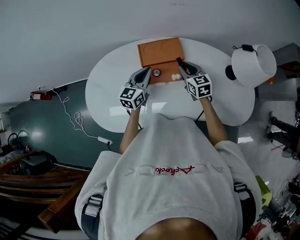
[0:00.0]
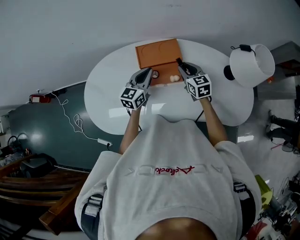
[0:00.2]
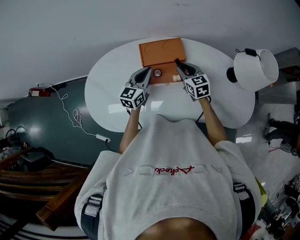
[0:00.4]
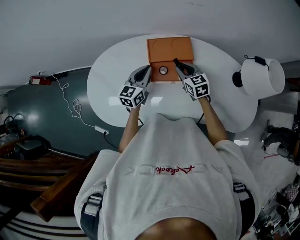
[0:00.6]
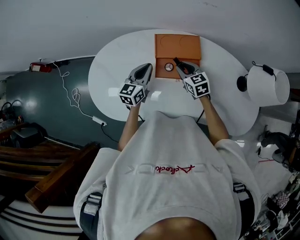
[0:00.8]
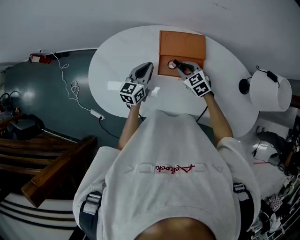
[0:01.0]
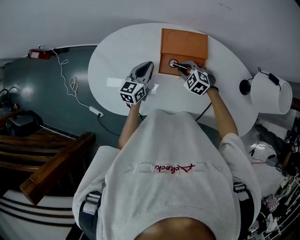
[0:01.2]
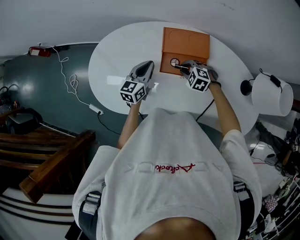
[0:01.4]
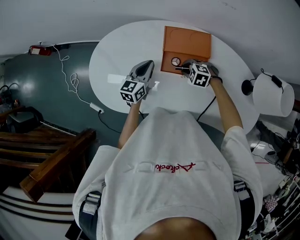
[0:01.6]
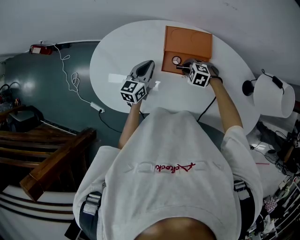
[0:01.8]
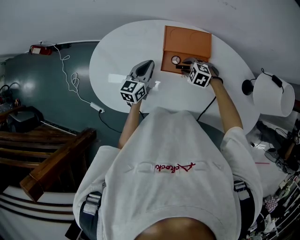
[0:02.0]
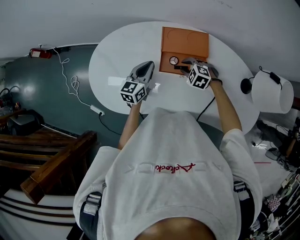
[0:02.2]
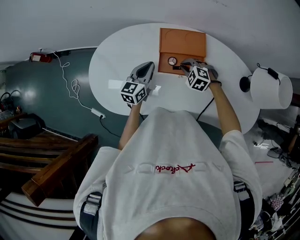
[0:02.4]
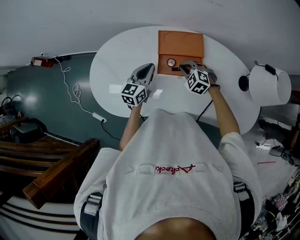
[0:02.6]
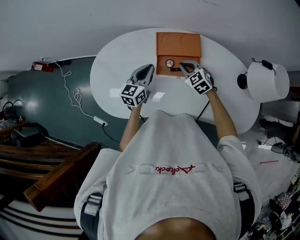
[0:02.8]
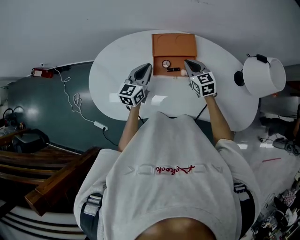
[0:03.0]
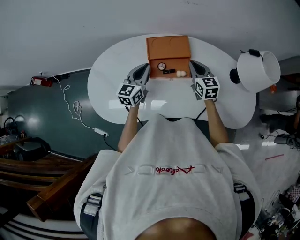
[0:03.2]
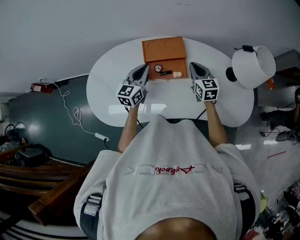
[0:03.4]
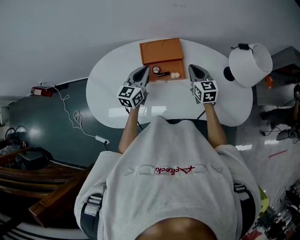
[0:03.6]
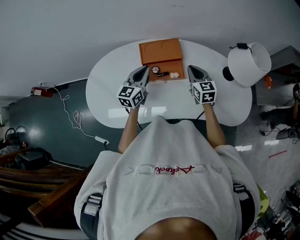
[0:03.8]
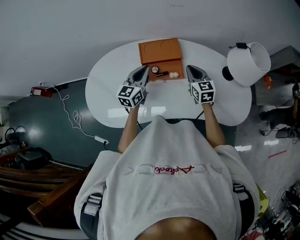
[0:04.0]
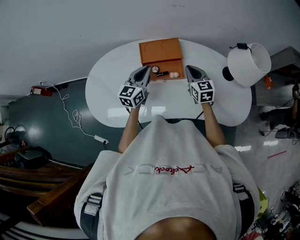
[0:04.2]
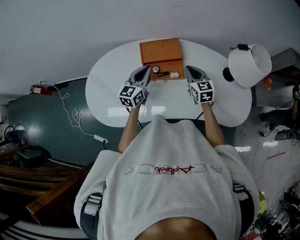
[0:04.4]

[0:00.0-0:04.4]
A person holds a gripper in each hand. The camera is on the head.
0:00.0 to 0:01.4: The left gripper changes place by approximately 10 cm. Meanwhile the right gripper heads downward, covering about 10 cm, and tilts its fingers approximately 30 degrees downward.
0:01.4 to 0:03.0: The right gripper heads upward, covering approximately 10 cm, tilts its fingers some 30 degrees upward, and closes. The left gripper changes place by about 5 cm.
0:03.0 to 0:04.4: The two grippers go approximately 5 cm to the right.

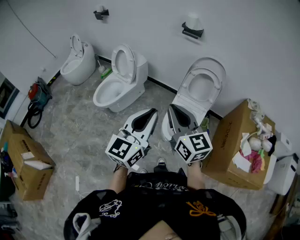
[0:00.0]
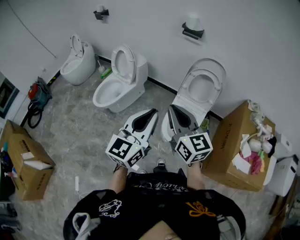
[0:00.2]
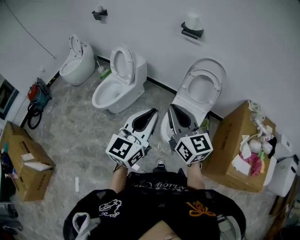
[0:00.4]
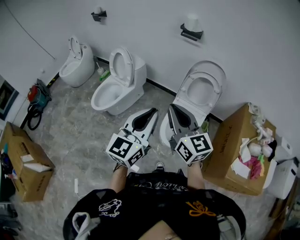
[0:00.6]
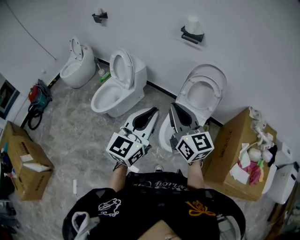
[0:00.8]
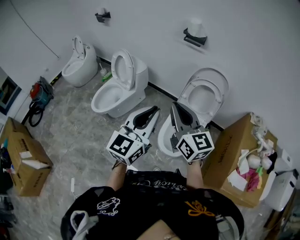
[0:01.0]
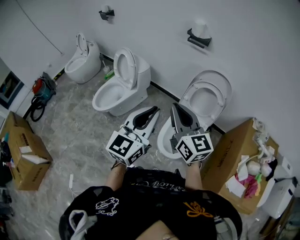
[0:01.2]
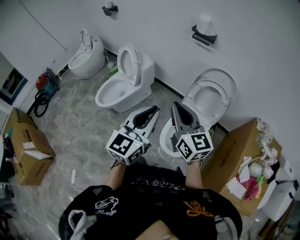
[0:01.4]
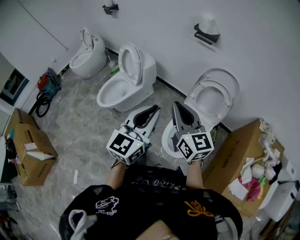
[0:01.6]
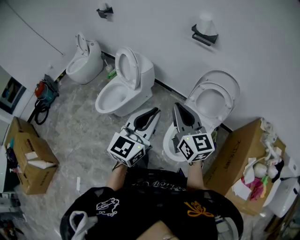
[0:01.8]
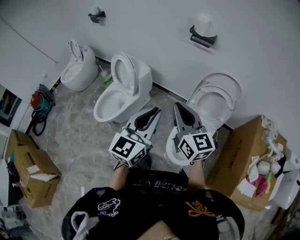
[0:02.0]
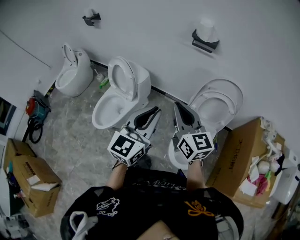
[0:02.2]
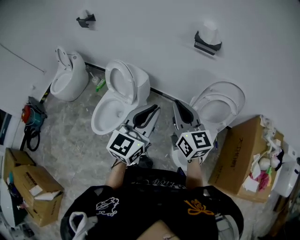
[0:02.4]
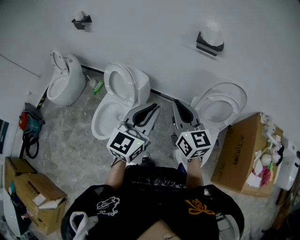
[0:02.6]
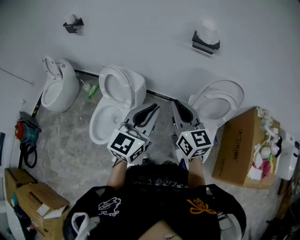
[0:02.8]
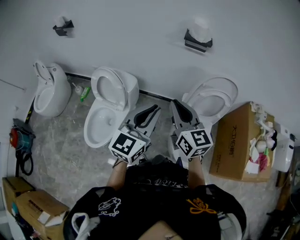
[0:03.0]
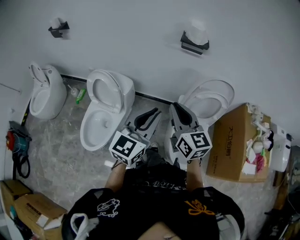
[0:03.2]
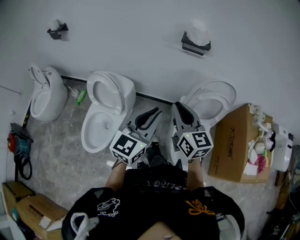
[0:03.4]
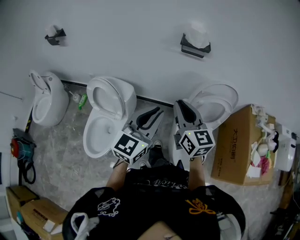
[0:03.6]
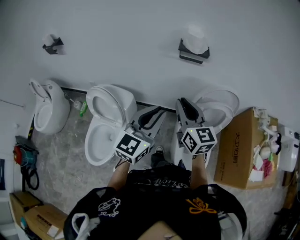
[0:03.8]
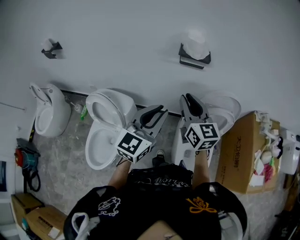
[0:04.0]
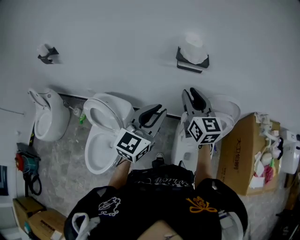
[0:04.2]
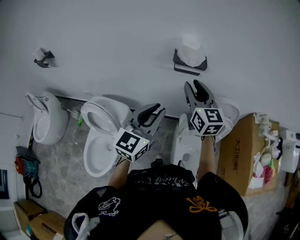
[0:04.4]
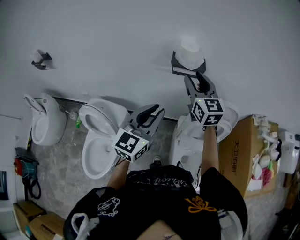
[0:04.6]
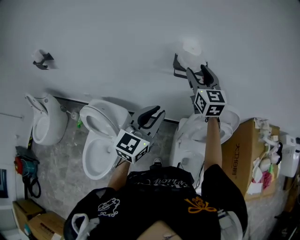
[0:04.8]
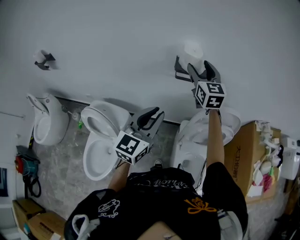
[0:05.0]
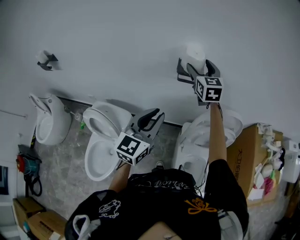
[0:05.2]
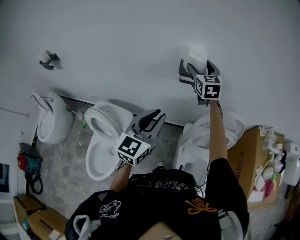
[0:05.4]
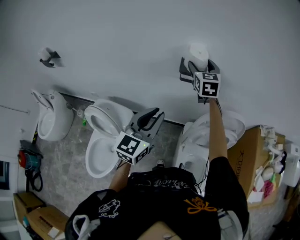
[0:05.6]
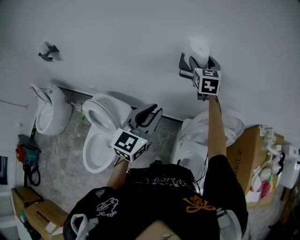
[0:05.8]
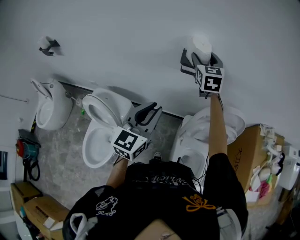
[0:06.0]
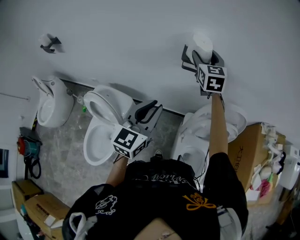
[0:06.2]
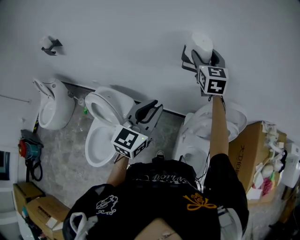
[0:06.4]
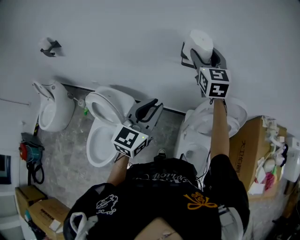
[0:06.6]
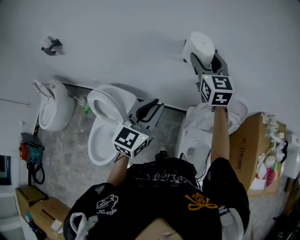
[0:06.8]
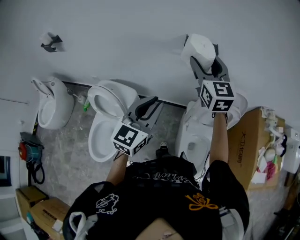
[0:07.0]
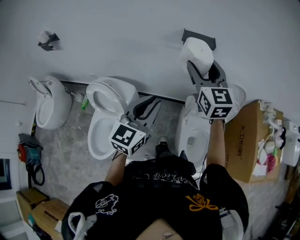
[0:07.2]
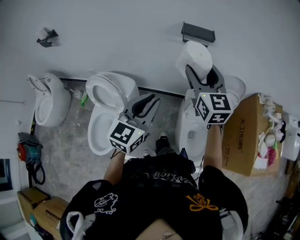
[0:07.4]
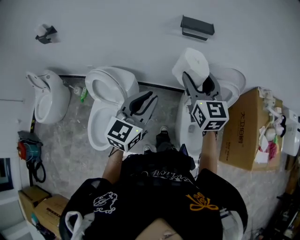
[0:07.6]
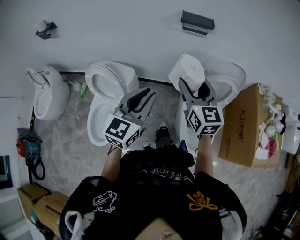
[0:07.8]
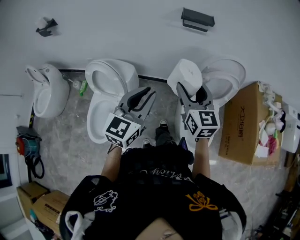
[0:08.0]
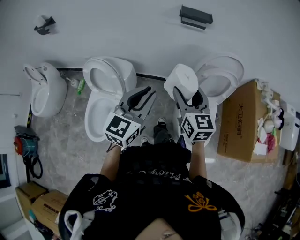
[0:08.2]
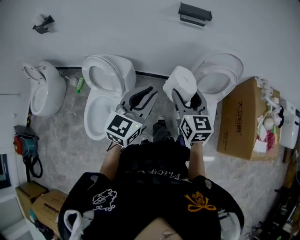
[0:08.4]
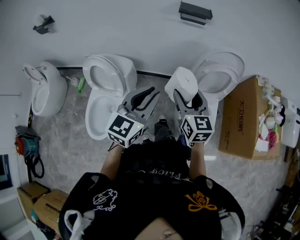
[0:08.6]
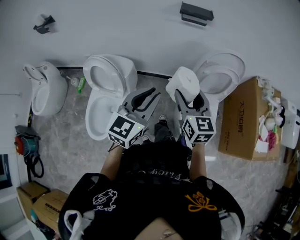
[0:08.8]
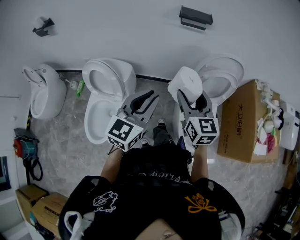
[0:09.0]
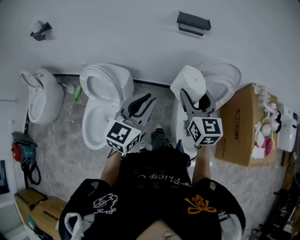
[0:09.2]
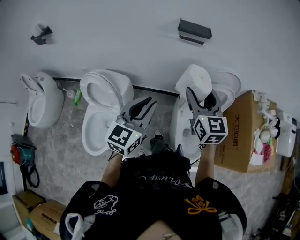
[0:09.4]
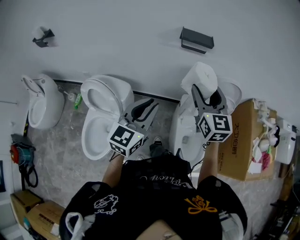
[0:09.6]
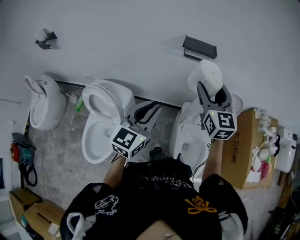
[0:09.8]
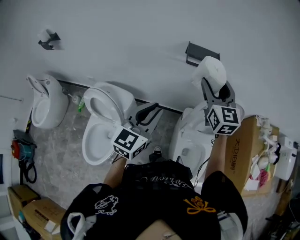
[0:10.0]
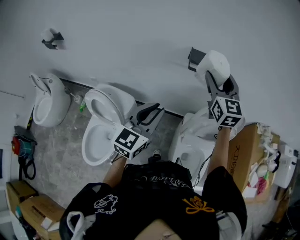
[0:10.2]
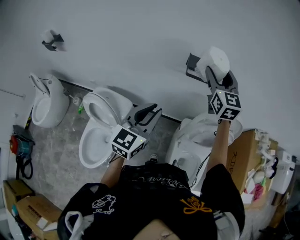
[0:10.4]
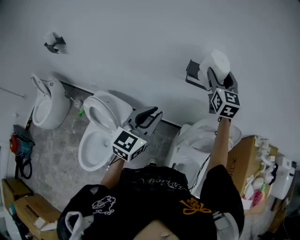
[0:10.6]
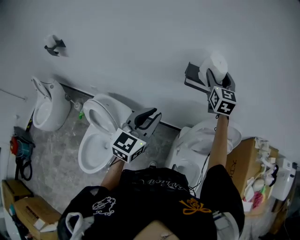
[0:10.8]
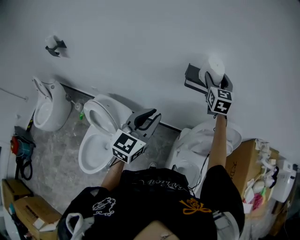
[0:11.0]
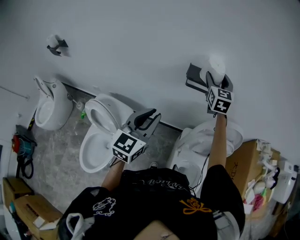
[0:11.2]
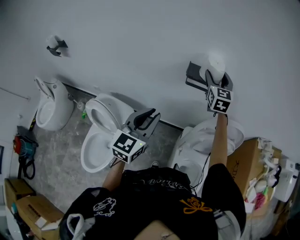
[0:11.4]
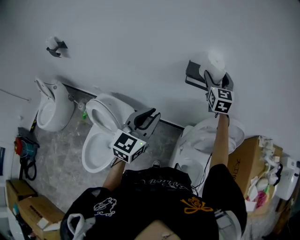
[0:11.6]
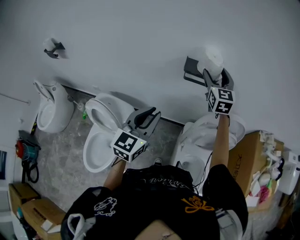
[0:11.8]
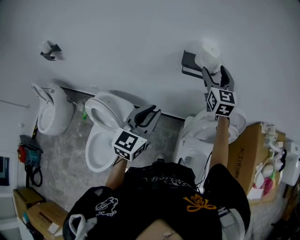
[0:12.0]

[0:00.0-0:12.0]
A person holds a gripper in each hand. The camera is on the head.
0:00.0 to 0:01.6: The right gripper goes roughly 20 cm forward. The left gripper goes about 20 cm forward and to the right.
0:01.6 to 0:03.0: Both grippers travel together forward and to the left, approximately 30 cm. The right gripper changes its angle by about 20 degrees; the left gripper turns by about 20 degrees.
0:03.0 to 0:04.4: Both grippers travel together forward, roughly 30 cm.
0:04.4 to 0:06.0: The right gripper shifts approximately 20 cm forward, and opens up. Meanwhile the left gripper ends up about 5 cm from where it was.
0:06.0 to 0:07.6: The left gripper heads backward, covering approximately 20 cm. Meanwhile the right gripper is displaced backward by some 35 cm.
0:07.6 to 0:09.0: The right gripper heads backward and downward, covering about 15 cm, while the left gripper changes place by approximately 5 cm.
0:09.0 to 0:10.4: The right gripper shifts about 40 cm forward and upward. The left gripper heads forward, covering about 20 cm.
0:10.4 to 0:12.0: The right gripper moves some 10 cm forward and comes back.

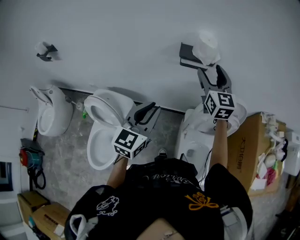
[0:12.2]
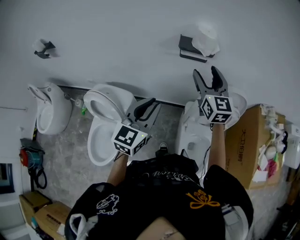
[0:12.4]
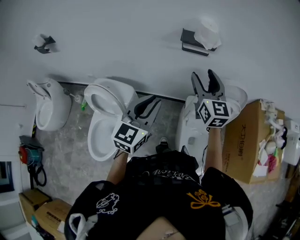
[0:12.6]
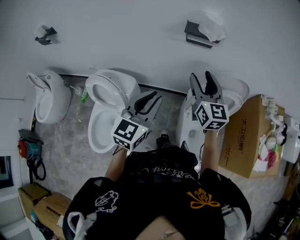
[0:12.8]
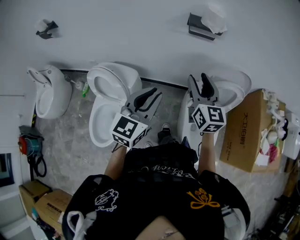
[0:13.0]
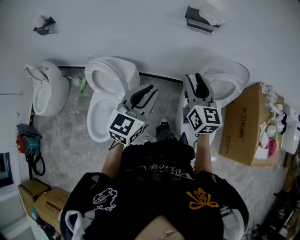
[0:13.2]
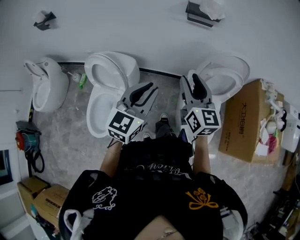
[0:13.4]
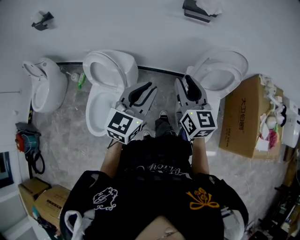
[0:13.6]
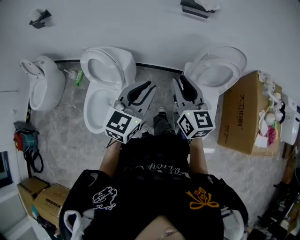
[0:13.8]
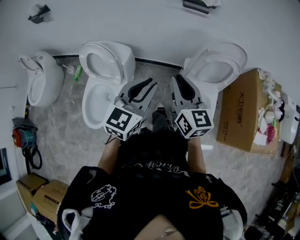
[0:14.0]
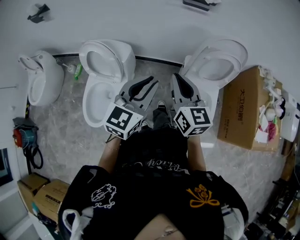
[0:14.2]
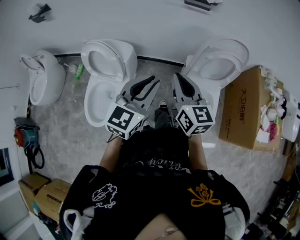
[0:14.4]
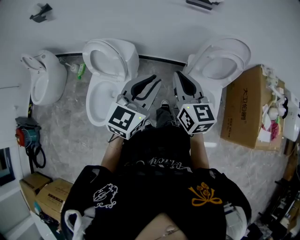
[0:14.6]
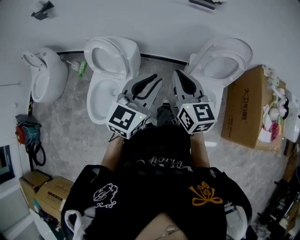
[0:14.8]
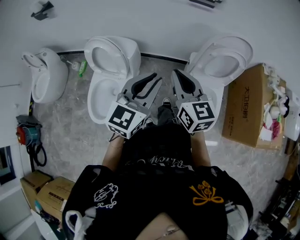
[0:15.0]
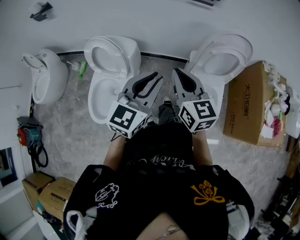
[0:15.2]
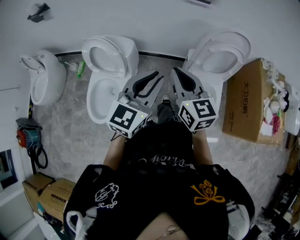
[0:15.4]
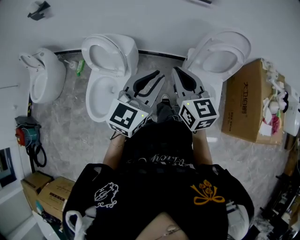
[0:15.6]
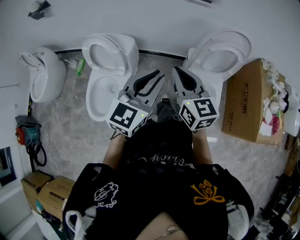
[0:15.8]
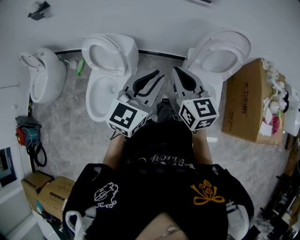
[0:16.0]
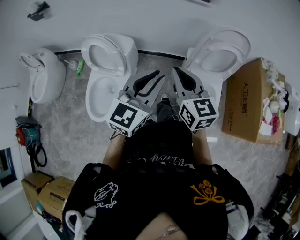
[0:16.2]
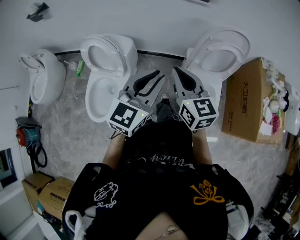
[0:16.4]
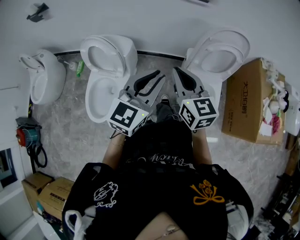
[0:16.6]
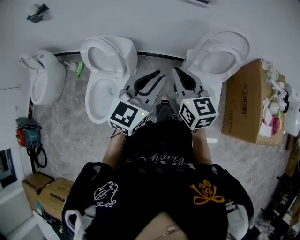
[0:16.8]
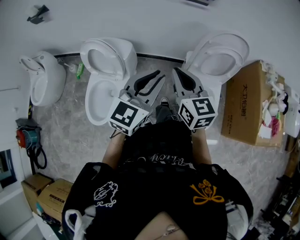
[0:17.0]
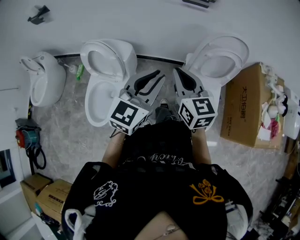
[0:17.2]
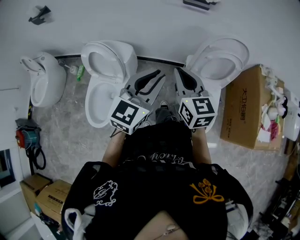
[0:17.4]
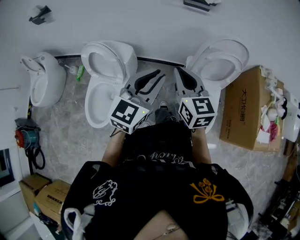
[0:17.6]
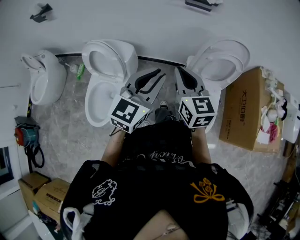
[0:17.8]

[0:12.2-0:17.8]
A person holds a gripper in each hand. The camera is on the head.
0:12.2 to 0:13.6: The left gripper heads backward, covering about 20 cm, while the right gripper heads backward, covering roughly 35 cm, and closes.
0:13.6 to 0:15.0: The right gripper is displaced backward by about 5 cm, and closes its fingers.
0:15.0 to 0:17.8: The grippers stay close to where they were, moving slightly.

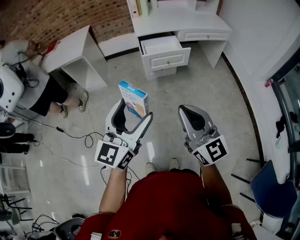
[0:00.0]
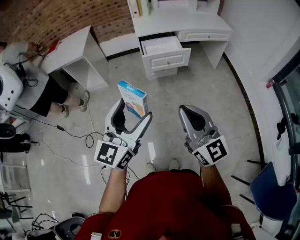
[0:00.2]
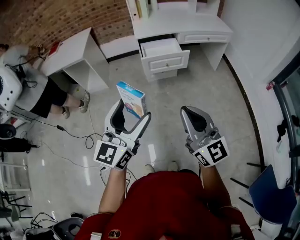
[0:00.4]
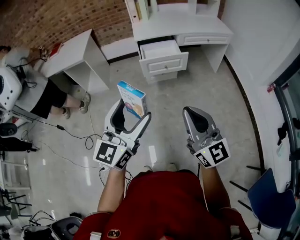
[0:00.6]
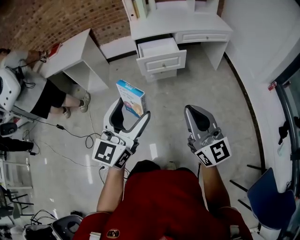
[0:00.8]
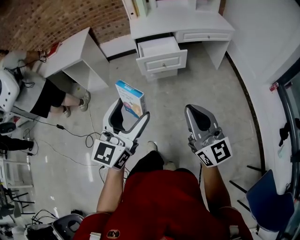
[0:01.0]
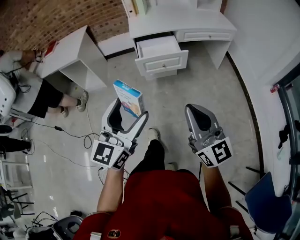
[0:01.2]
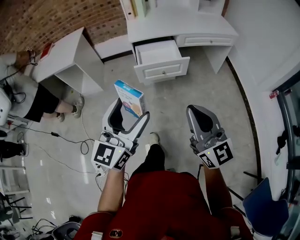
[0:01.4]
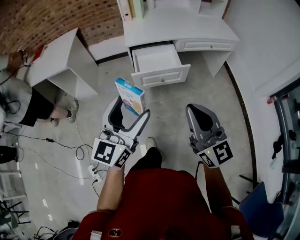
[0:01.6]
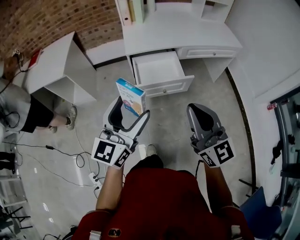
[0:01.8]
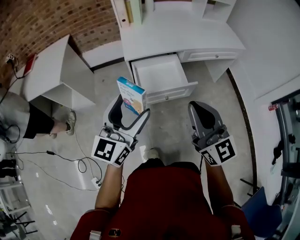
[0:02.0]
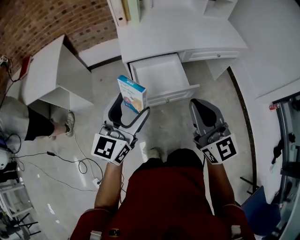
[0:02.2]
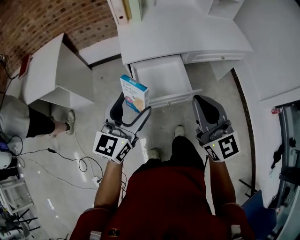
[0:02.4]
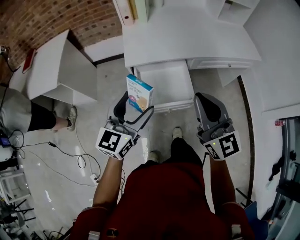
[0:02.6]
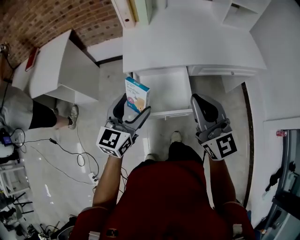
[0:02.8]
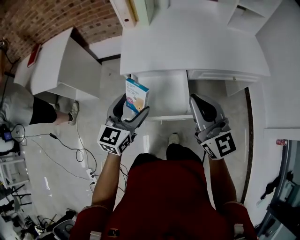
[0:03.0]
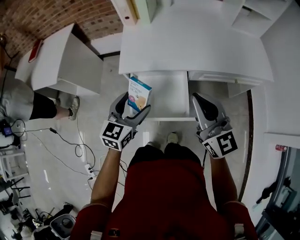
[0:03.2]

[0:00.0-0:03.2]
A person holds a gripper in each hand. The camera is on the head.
0:00.0 to 0:01.6: The right gripper travels forward and to the right by about 25 cm; the left gripper goes approximately 25 cm forward.
0:01.6 to 0:03.2: The pair of grippers is taken forward, some 40 cm. The left gripper turns by some 30 degrees.
